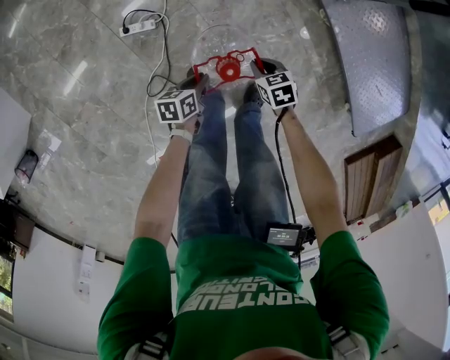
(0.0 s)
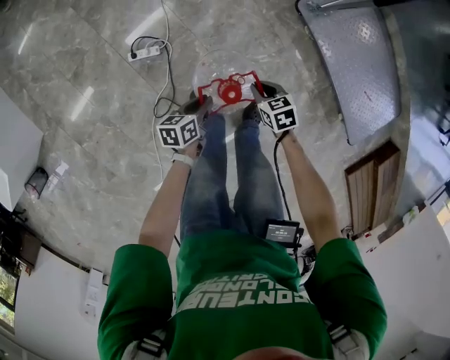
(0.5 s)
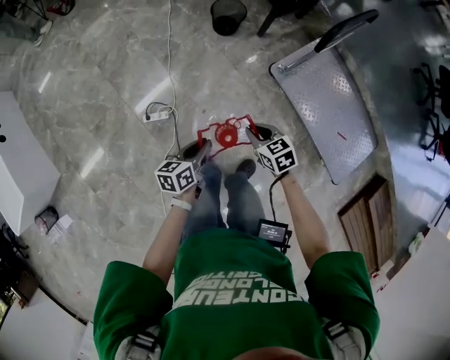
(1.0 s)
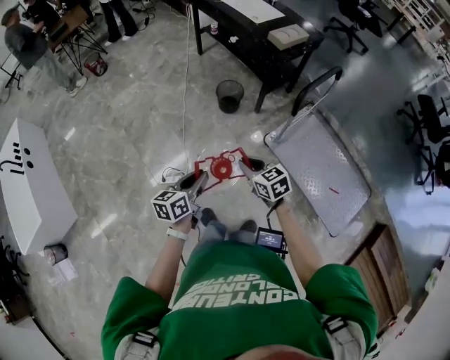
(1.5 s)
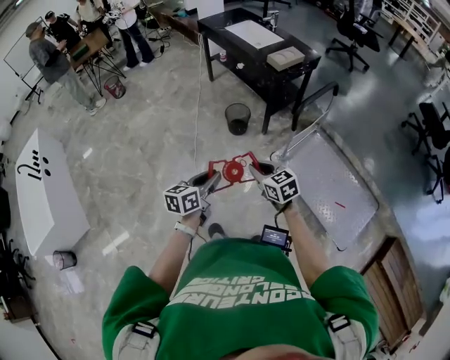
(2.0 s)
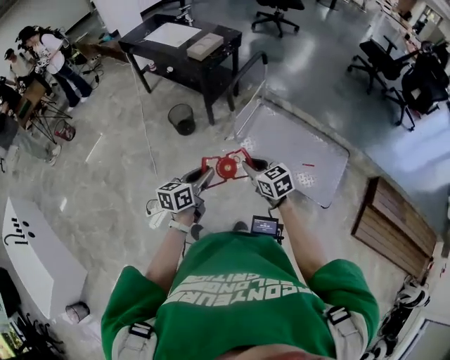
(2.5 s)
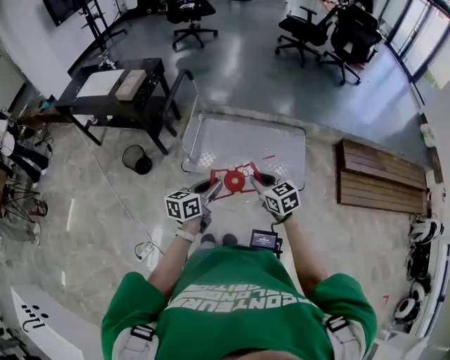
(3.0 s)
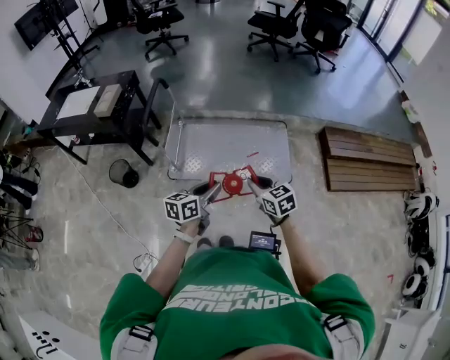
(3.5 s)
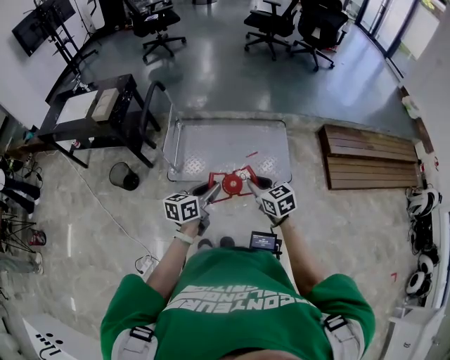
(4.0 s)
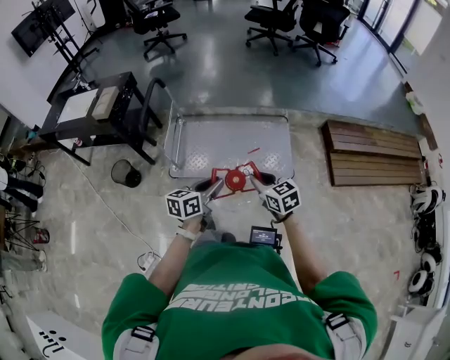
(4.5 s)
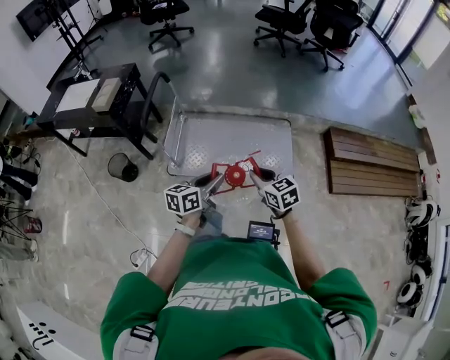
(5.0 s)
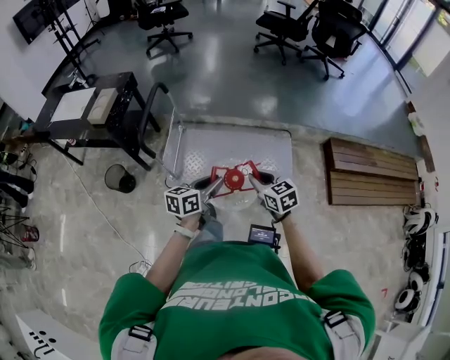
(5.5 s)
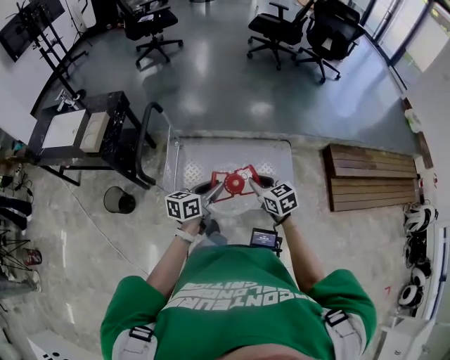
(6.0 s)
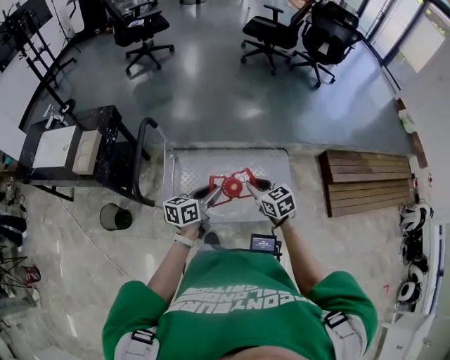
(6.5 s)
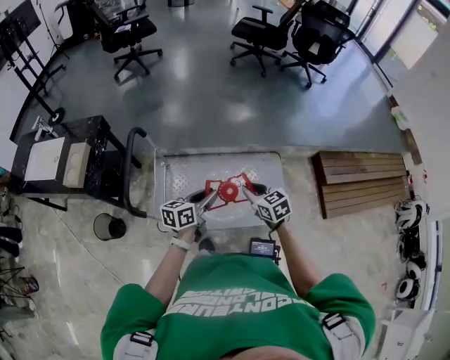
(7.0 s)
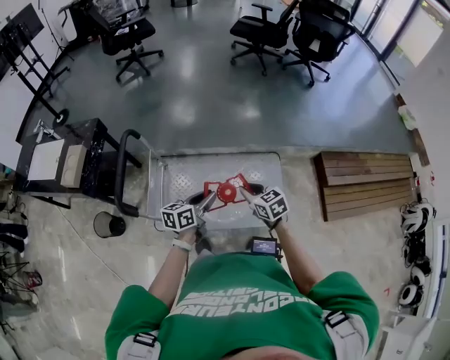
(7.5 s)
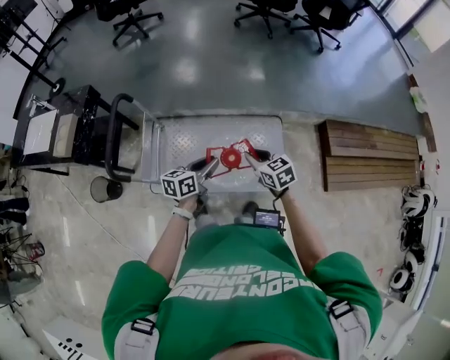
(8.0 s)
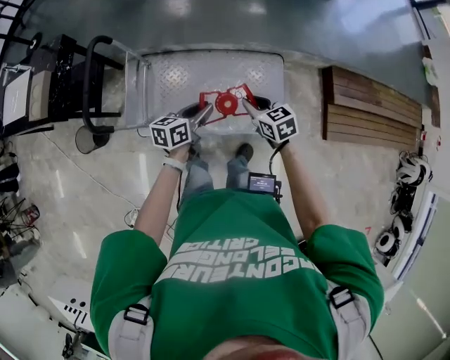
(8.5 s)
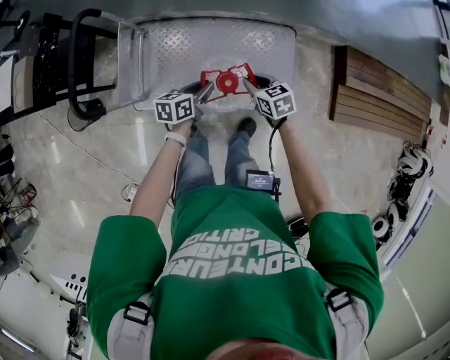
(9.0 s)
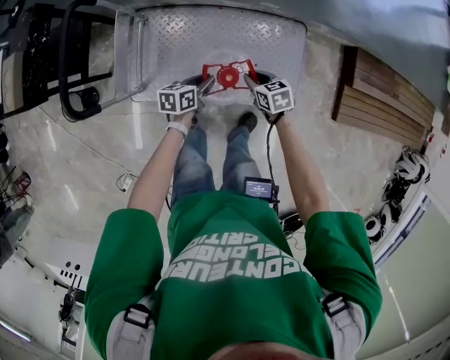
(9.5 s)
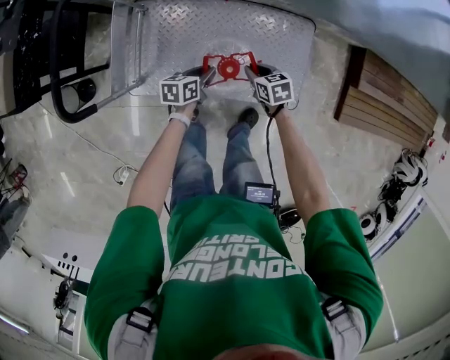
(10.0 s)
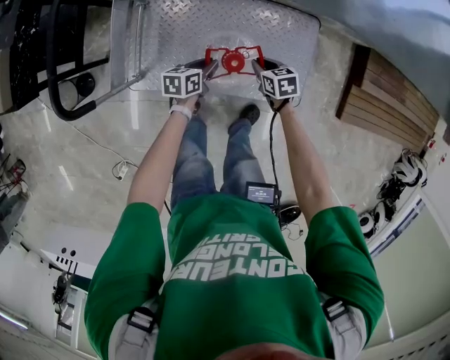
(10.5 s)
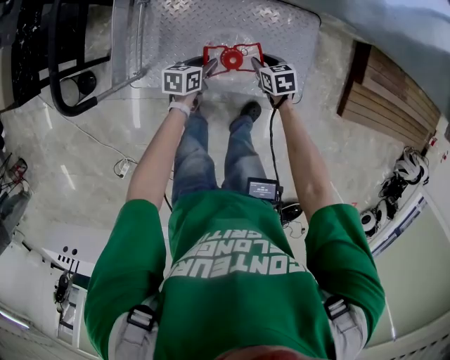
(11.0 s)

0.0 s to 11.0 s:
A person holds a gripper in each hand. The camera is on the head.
0.0 to 2.0 s: Both grippers travel together upward, some 50 cm. The left gripper tips its fingers upward by approximately 30 degrees, while the right gripper angles its fingers upward, by some 30 degrees.
2.0 to 3.5 s: The left gripper moves some 40 cm, and turns by roughly 50 degrees. The right gripper changes place by some 40 cm, and swivels roughly 50 degrees.
3.5 to 5.5 s: The two grippers go roughly 15 cm forward.
5.5 to 7.5 s: Both grippers move forward, roughly 20 cm.
7.5 to 9.0 s: The grippers both shift downward by about 15 cm.
9.0 to 11.0 s: Both grippers travel together downward and forward, about 15 cm.

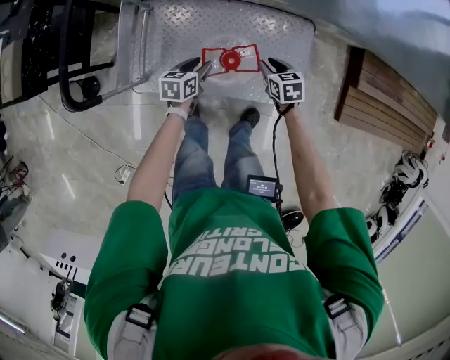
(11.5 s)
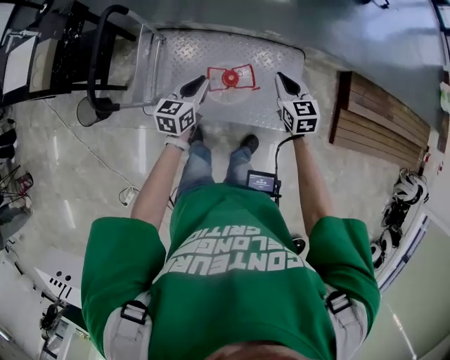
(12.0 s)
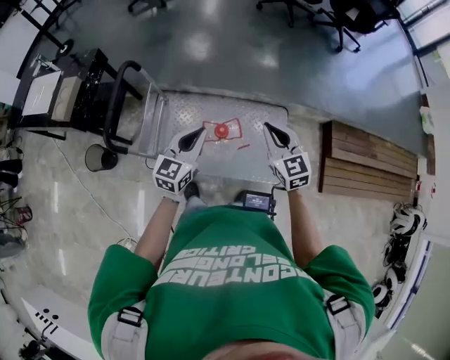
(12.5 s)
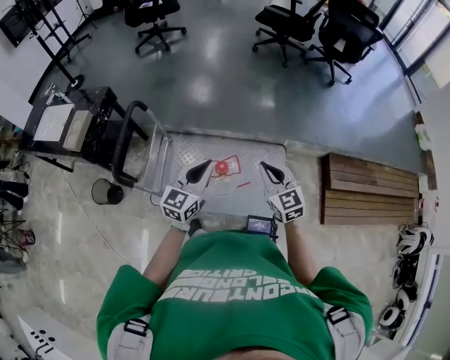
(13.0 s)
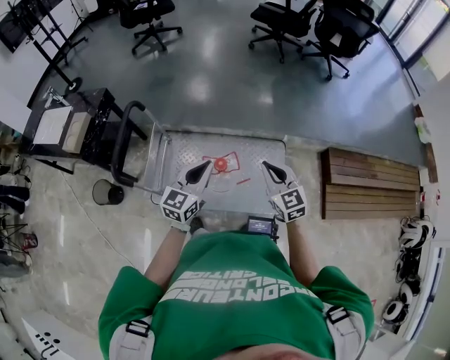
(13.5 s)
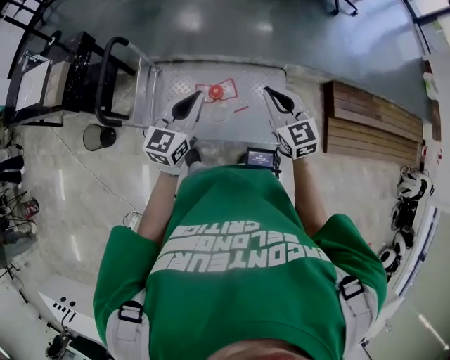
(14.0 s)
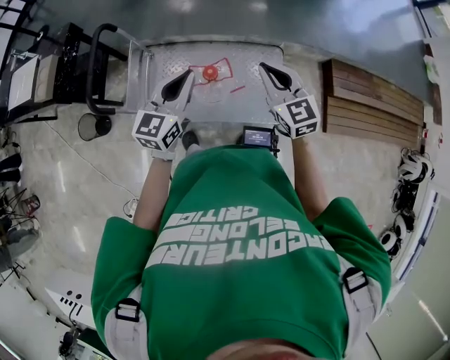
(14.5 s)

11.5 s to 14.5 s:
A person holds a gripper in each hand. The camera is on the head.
11.5 to 13.0 s: The grippers both shift upward by roughly 35 cm. The left gripper tilts its fingers some 40 degrees upward, and closes its fingers. The right gripper tips its fingers upward by roughly 40 degrees, and closes up.
13.0 to 14.5 s: The grippers stay close to where they were, moving slightly.

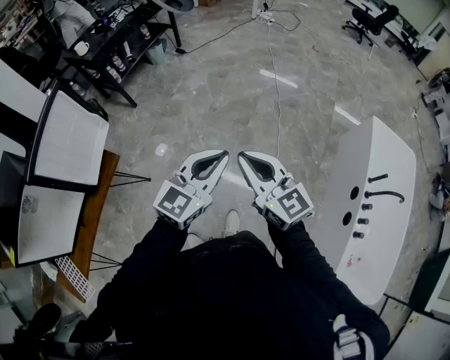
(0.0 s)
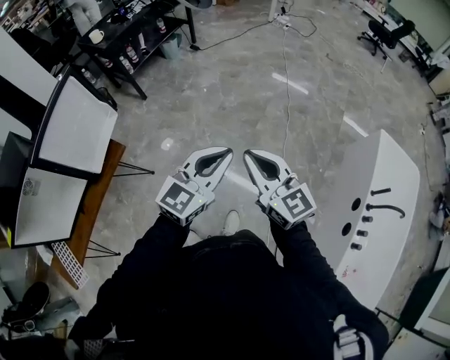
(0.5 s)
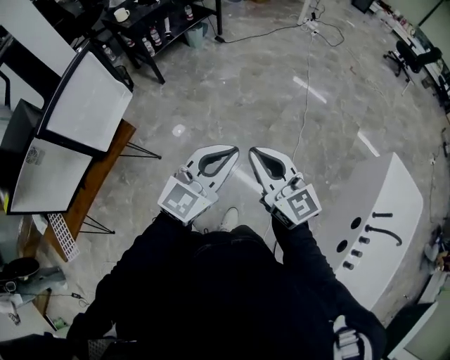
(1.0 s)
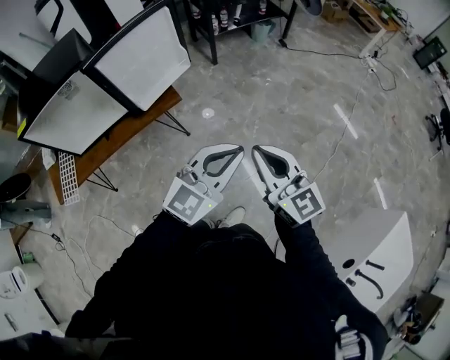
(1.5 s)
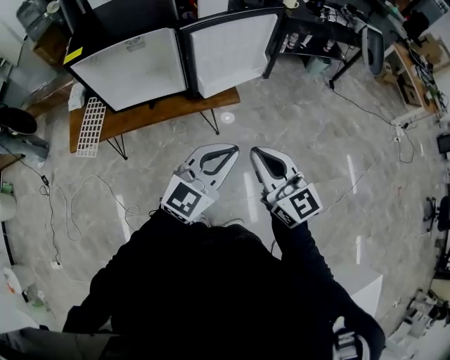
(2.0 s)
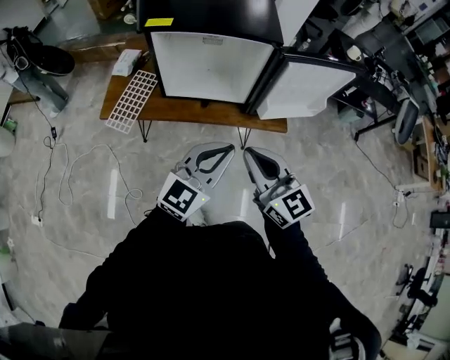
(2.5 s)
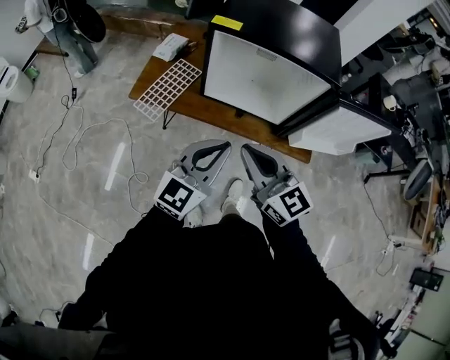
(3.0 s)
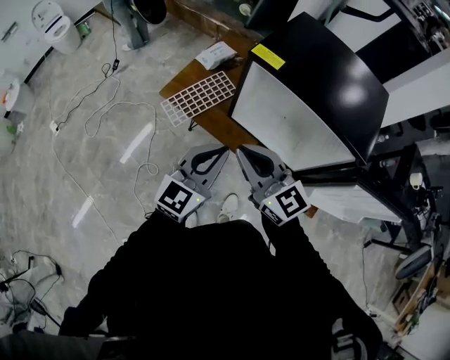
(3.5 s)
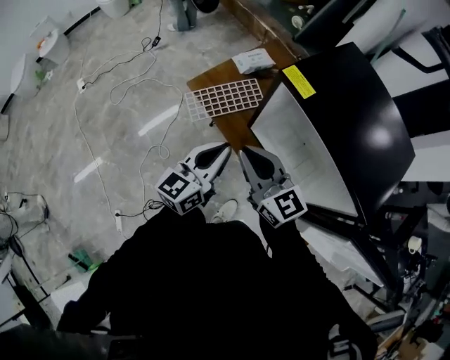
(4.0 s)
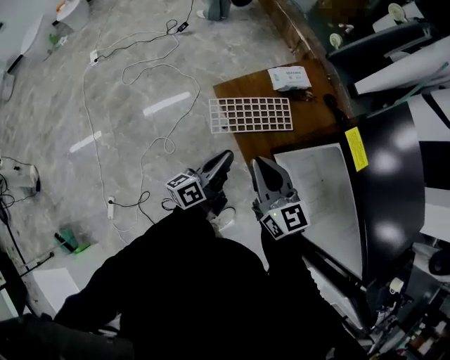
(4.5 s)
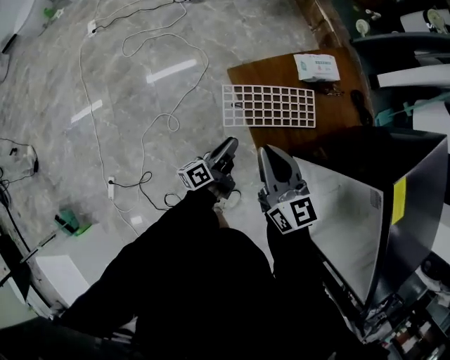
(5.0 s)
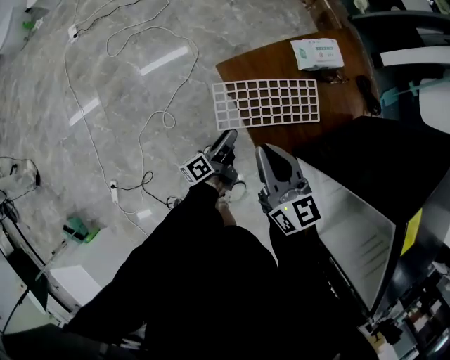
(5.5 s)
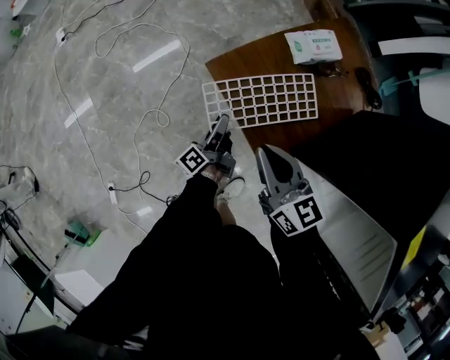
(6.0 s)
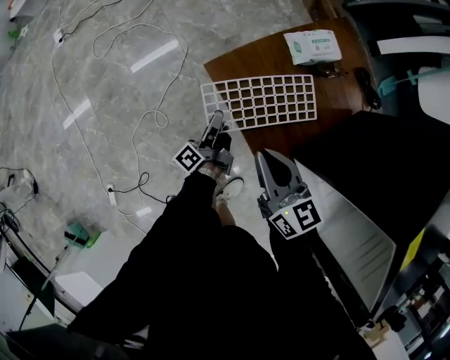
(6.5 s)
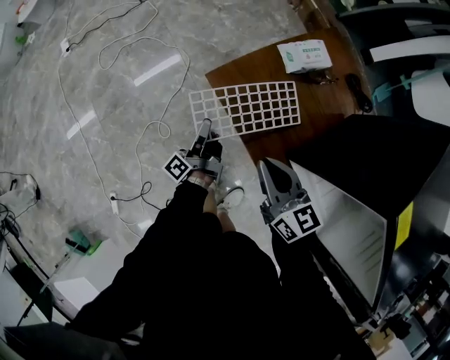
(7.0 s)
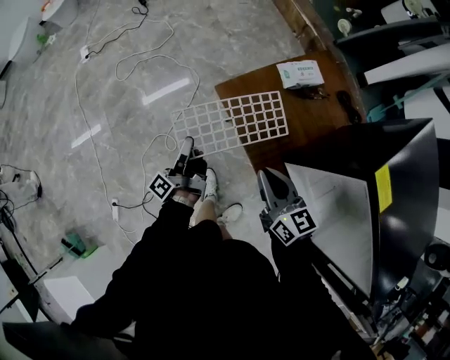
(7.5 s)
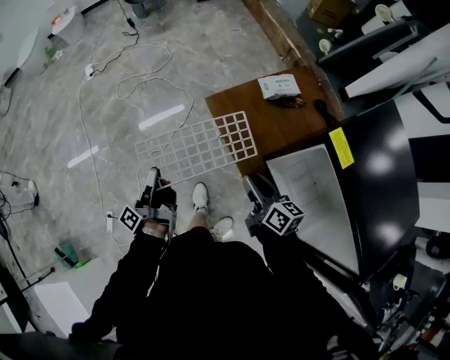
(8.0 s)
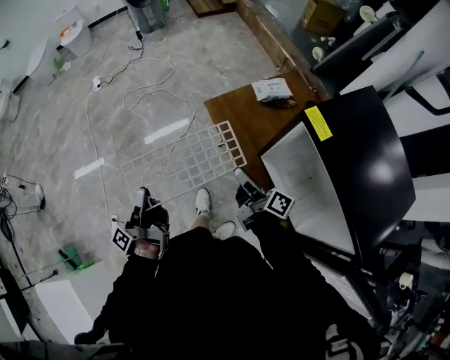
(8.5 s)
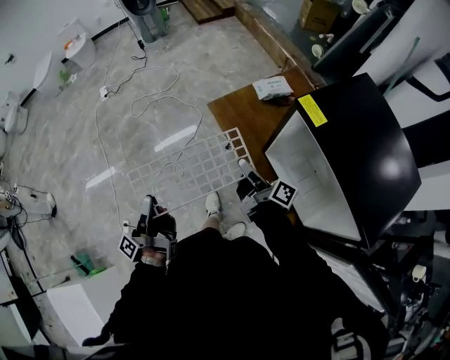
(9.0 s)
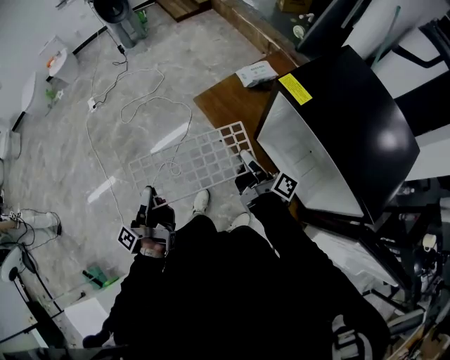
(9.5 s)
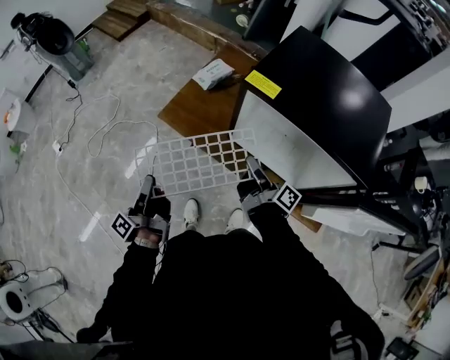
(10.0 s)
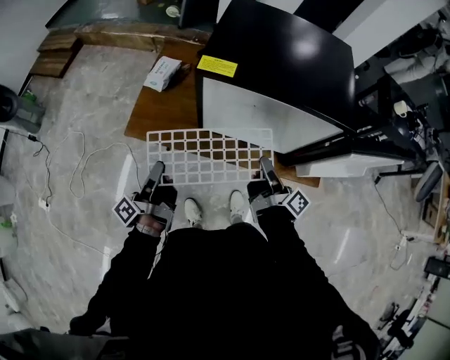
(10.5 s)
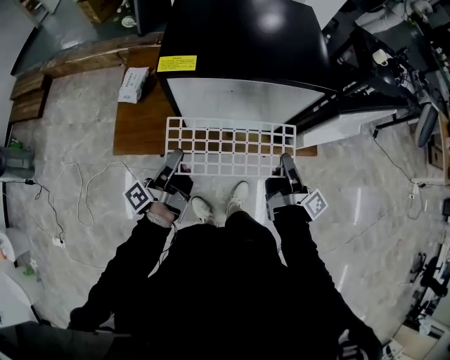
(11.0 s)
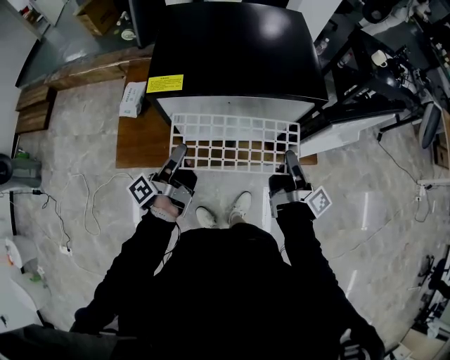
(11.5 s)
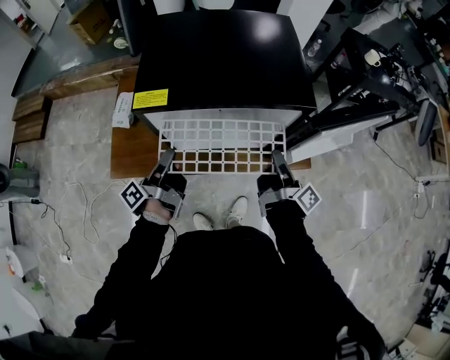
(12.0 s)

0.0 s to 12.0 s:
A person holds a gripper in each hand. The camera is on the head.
0.0 to 2.0 s: The right gripper shifts by approximately 40 cm, and turns by some 50 degrees, while the left gripper ends up about 40 cm from where it was, and swivels some 50 degrees.
2.0 to 4.0 s: The two grippers travel together, about 50 cm. The left gripper rotates some 80 degrees; the right gripper rotates approximately 70 degrees.
4.0 to 6.0 s: Both grippers move downward and forward, some 40 cm. The right gripper turns by about 20 degrees. Meanwhile the left gripper rotates around the line of its fingers by about 60 degrees, counterclockwise from behind, and opens.
6.0 to 8.0 s: The left gripper travels upward, to the left and backward by roughly 40 cm, rotates approximately 20 degrees, and closes its fingers, while the right gripper shifts some 20 cm backward and upward, and opens up.
8.0 to 10.0 s: The left gripper goes roughly 10 cm upward, and swivels about 30 degrees. The right gripper changes place by about 15 cm, turns by approximately 60 degrees, and closes up.
10.0 to 12.0 s: The left gripper ends up about 30 cm from where it was, and rotates approximately 50 degrees. Meanwhile the right gripper moves roughly 25 cm, and rotates roughly 50 degrees.
